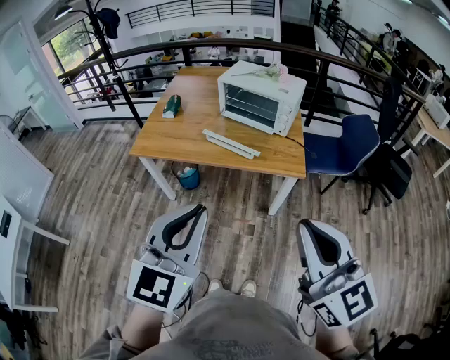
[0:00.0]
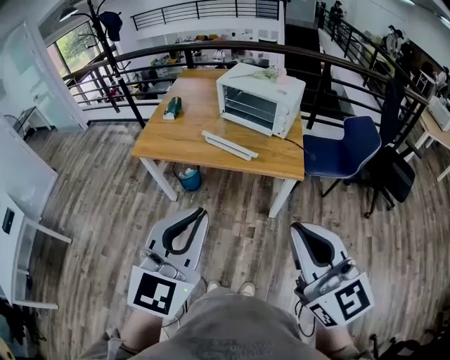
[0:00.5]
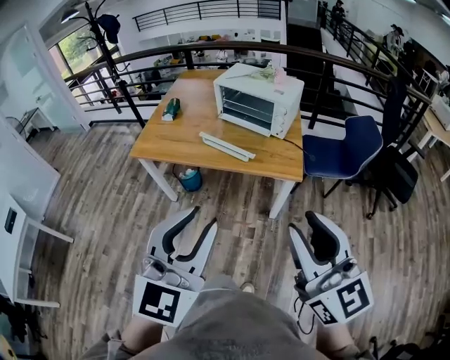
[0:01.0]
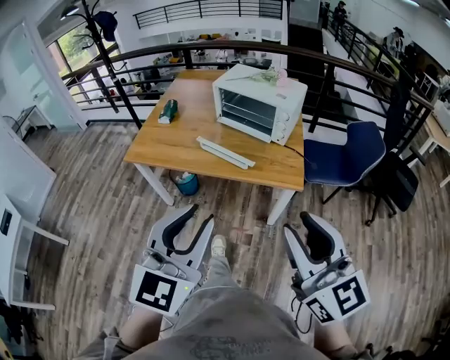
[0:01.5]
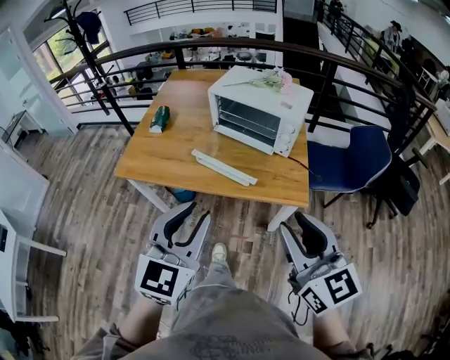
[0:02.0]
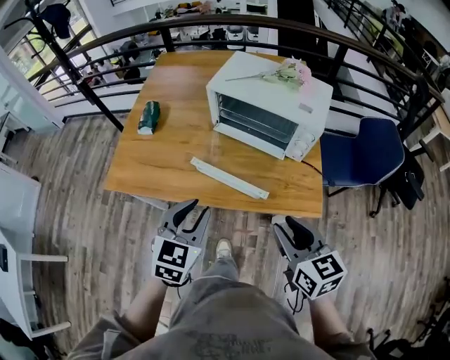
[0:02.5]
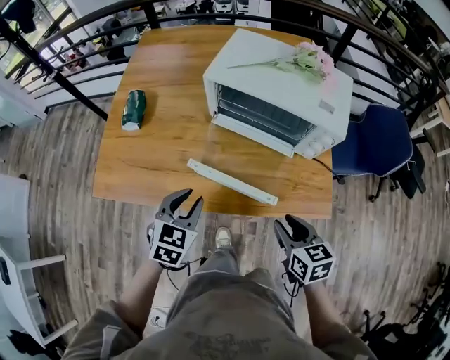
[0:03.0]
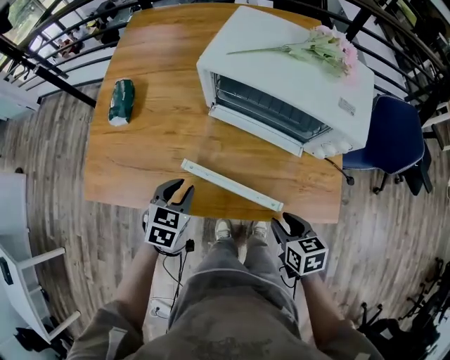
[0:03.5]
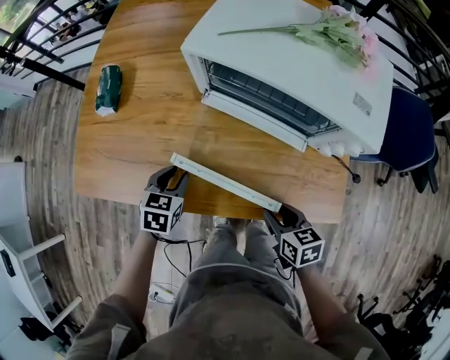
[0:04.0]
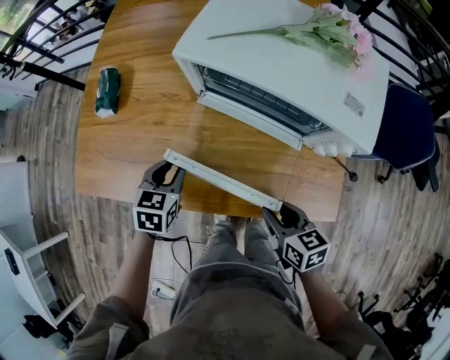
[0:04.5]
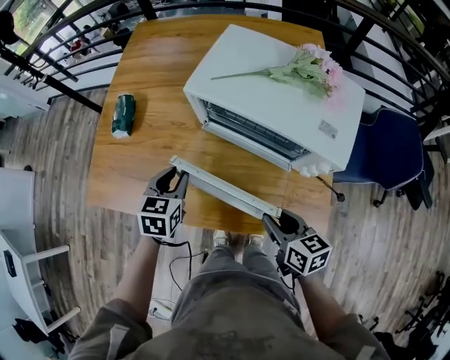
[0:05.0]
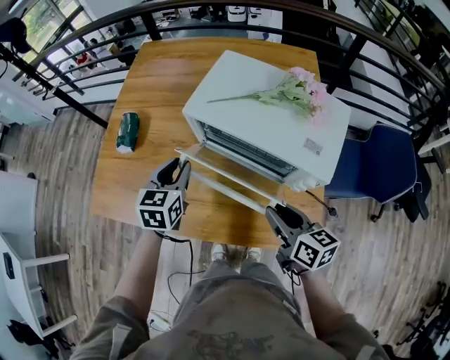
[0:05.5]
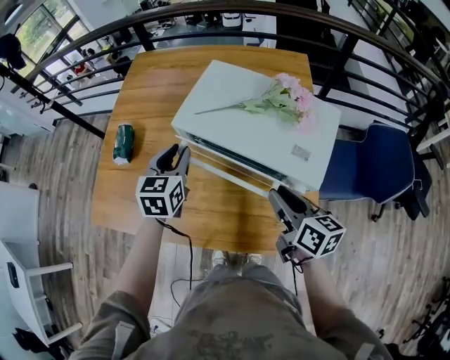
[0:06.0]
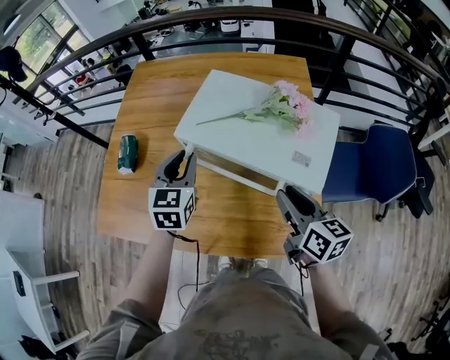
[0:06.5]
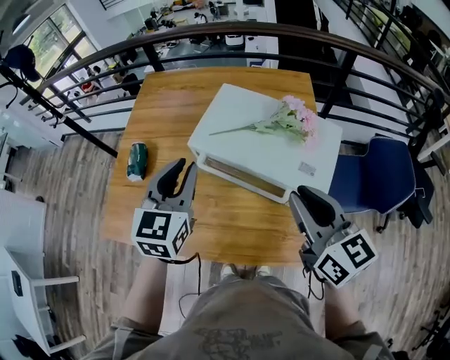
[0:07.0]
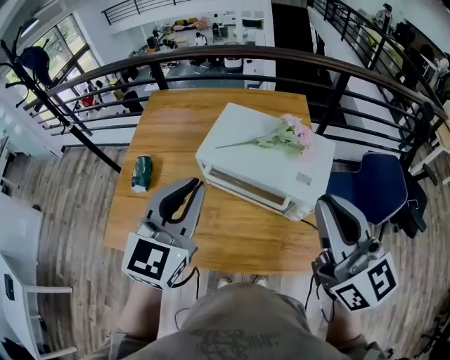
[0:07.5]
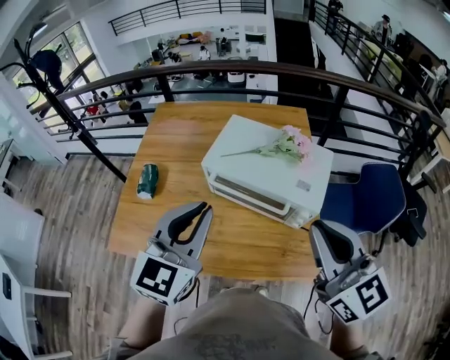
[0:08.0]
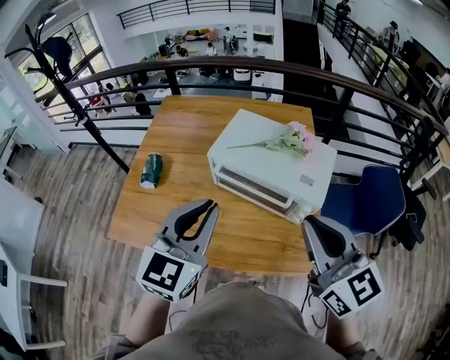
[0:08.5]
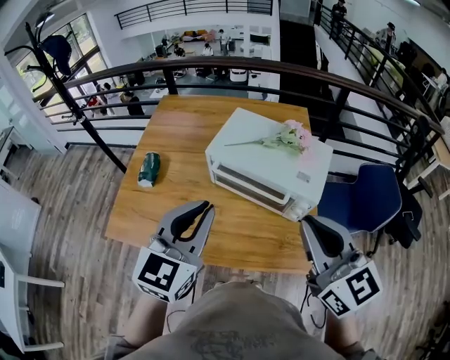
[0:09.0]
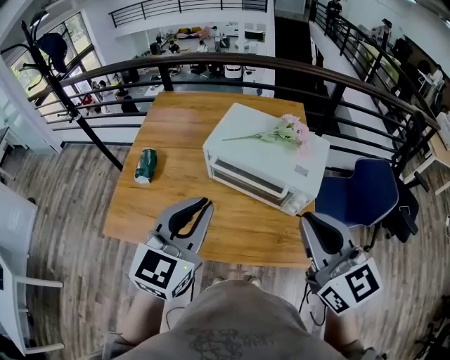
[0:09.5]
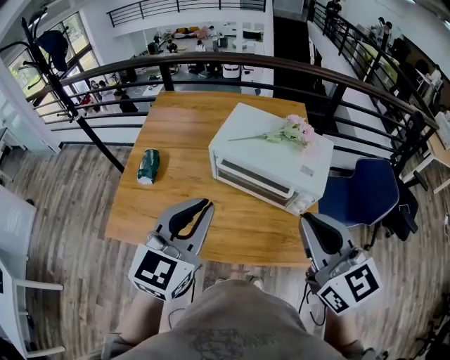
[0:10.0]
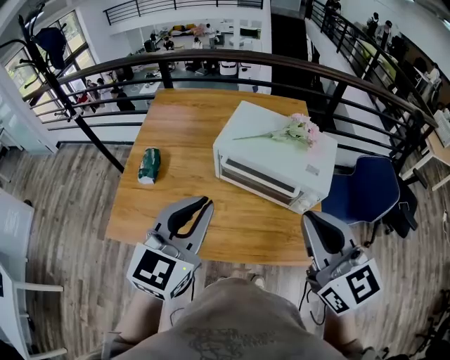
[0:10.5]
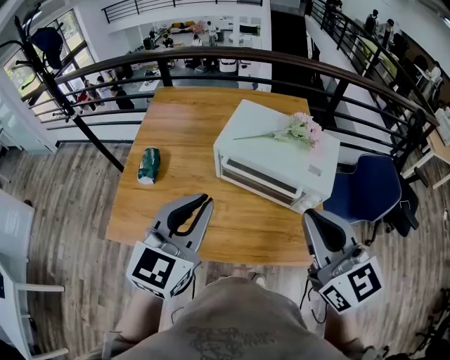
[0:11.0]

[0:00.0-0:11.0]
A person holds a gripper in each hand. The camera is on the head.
0:00.0 to 0:02.0: Both grippers move forward and downward, some 20 cm. The right gripper opens; the left gripper opens.
0:02.0 to 0:03.5: The two grippers go approximately 40 cm downward and forward. The right gripper points its fingers about 50 degrees further downward. Meanwhile the left gripper points its fingers about 40 degrees further downward.
0:03.5 to 0:05.5: The right gripper travels upward and forward by some 20 cm, and swivels some 30 degrees. Meanwhile the left gripper travels upward, forward and to the right by roughly 20 cm, and changes its angle by about 30 degrees.
0:05.5 to 0:07.5: The two grippers go roughly 30 cm upward. The left gripper swivels roughly 30 degrees; the right gripper swivels about 40 degrees, and closes its fingers.
0:07.5 to 0:09.0: Both grippers move backward, roughly 5 cm.
0:09.0 to 0:11.0: Both grippers move to the left, roughly 5 cm.

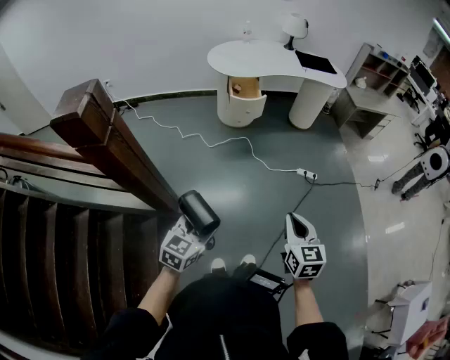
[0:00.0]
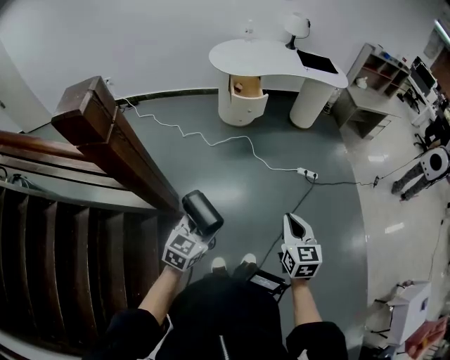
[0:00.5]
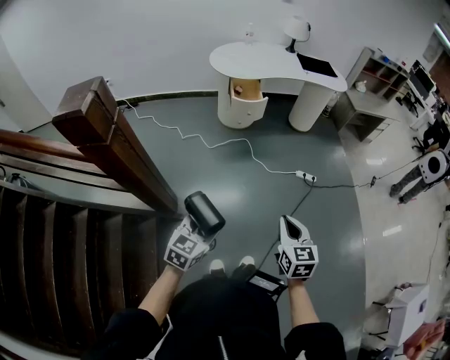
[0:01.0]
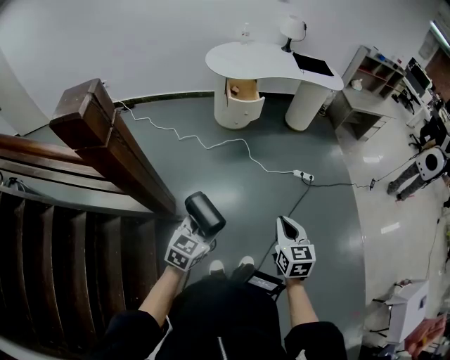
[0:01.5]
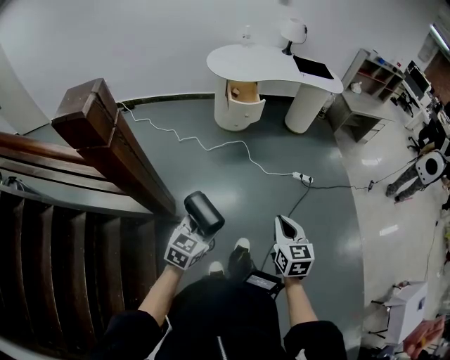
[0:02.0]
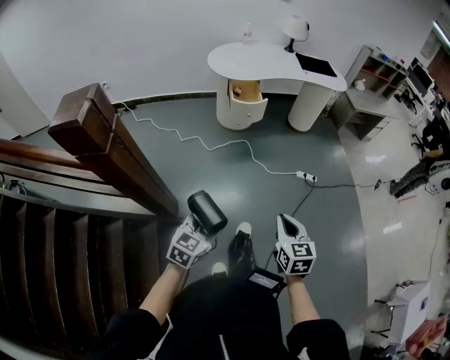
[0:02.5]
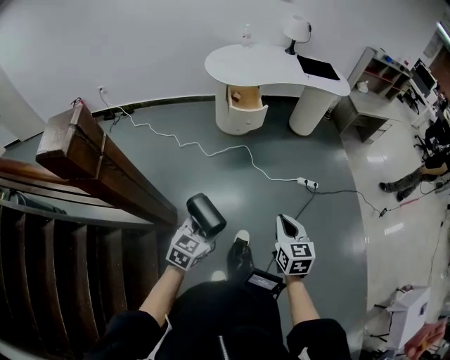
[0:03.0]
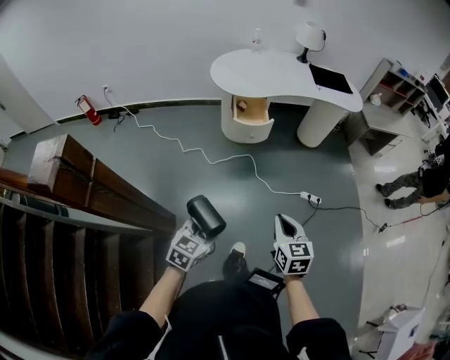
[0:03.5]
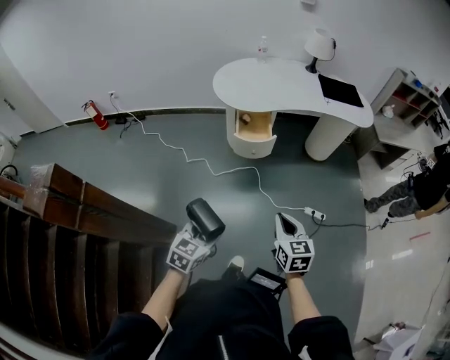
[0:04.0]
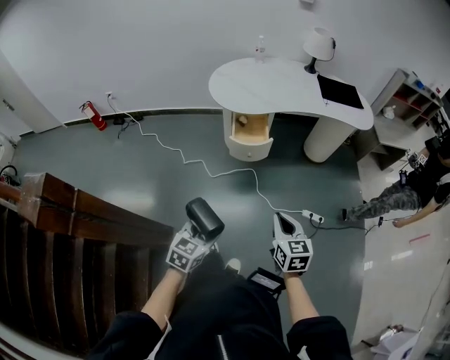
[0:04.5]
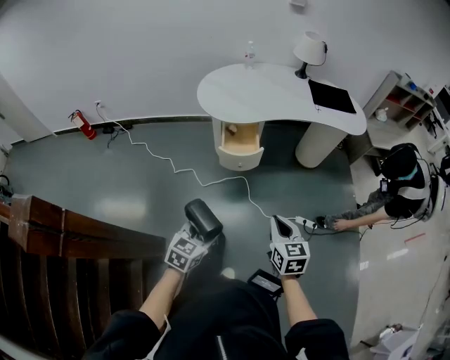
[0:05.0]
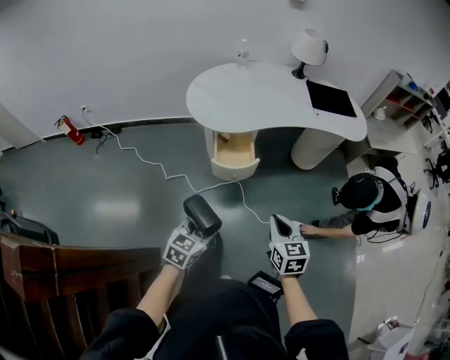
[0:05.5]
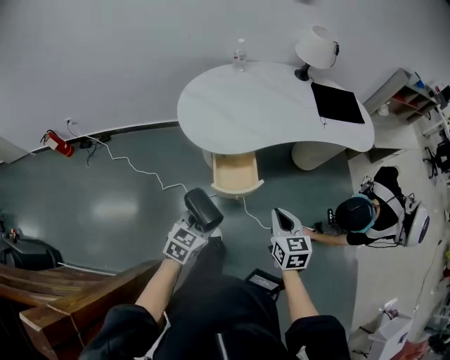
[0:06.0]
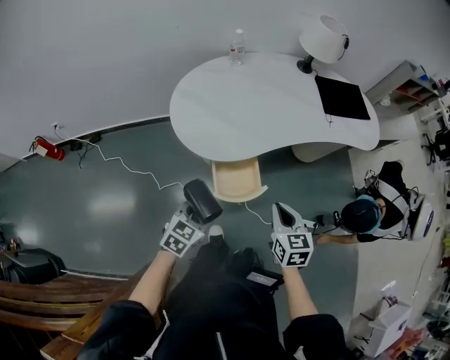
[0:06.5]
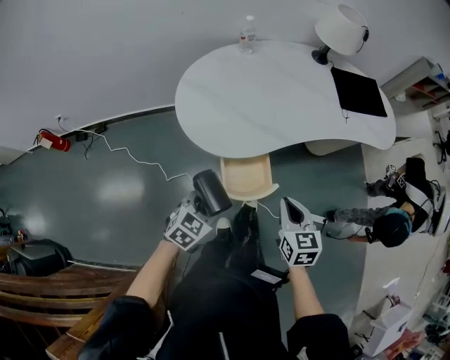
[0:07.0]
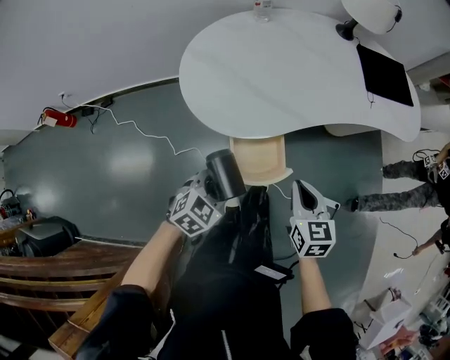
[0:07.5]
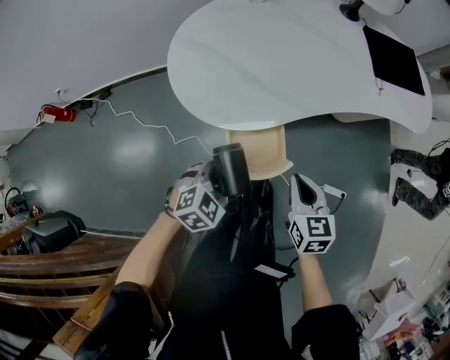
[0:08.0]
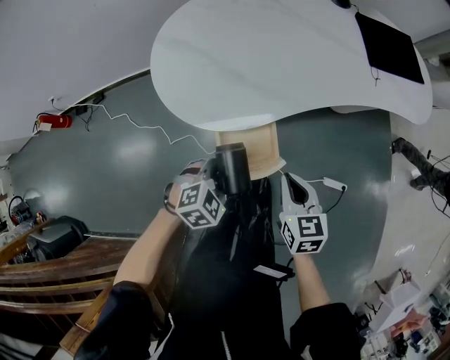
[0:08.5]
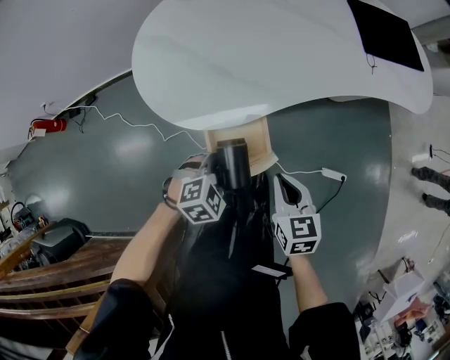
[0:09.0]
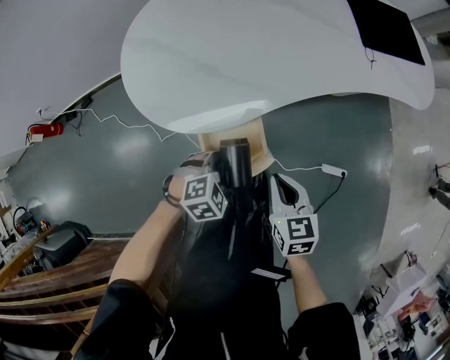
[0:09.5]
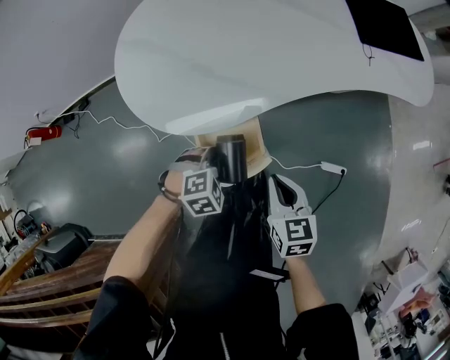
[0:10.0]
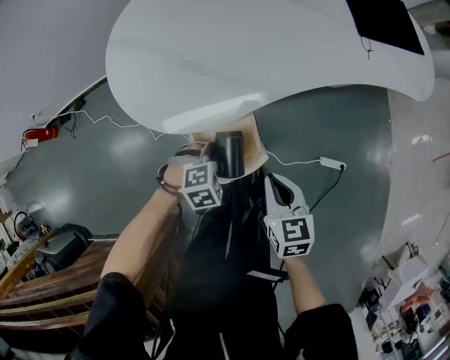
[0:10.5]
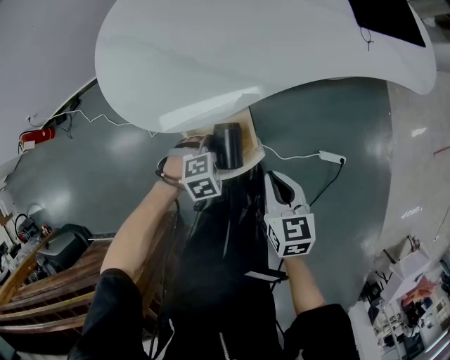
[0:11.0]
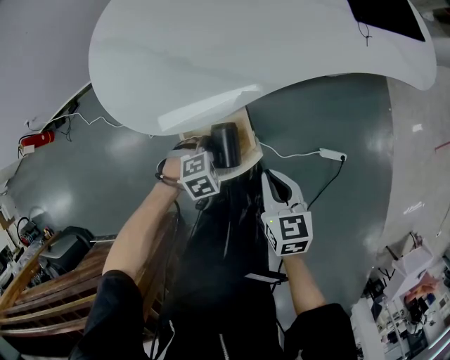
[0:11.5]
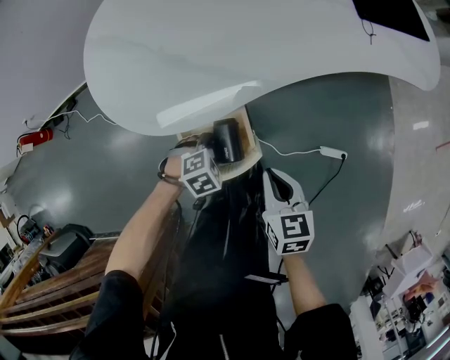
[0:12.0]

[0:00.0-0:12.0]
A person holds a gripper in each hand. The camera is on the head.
0:00.0 to 0:02.0: The right gripper ends up roughly 5 cm from where it was.
0:02.0 to 0:04.0: Both grippers travel together forward, roughly 30 cm.
0:04.0 to 0:06.0: Both grippers move forward, roughly 35 cm.
0:06.0 to 0:08.0: The left gripper is displaced forward and downward by roughly 20 cm, and changes its angle by roughly 30 degrees. Meanwhile the right gripper goes roughly 15 cm forward, downward and to the left.
0:08.0 to 0:10.0: The right gripper moves downward, some 5 cm, while the left gripper is displaced downward and forward by roughly 10 cm, and turns by some 20 degrees.
0:10.0 to 0:12.0: The right gripper moves about 5 cm, while the left gripper goes roughly 10 cm downward.

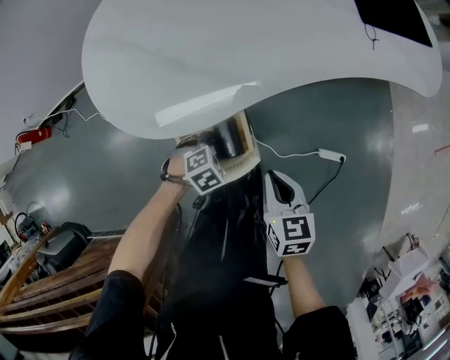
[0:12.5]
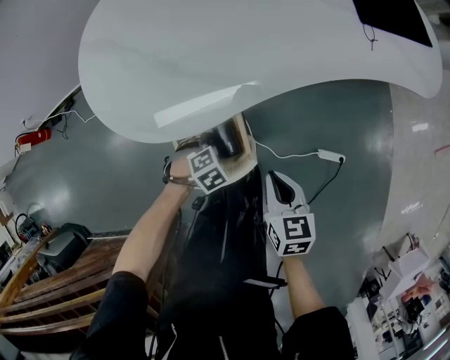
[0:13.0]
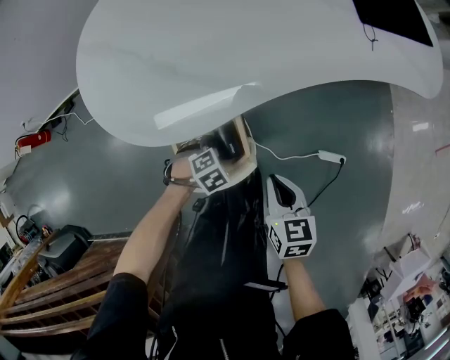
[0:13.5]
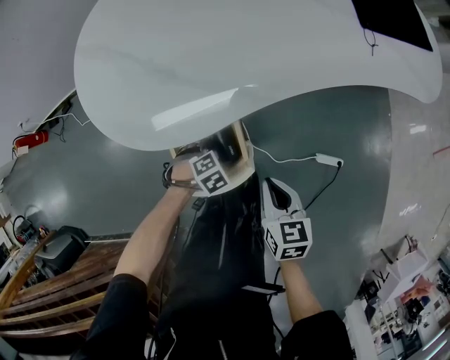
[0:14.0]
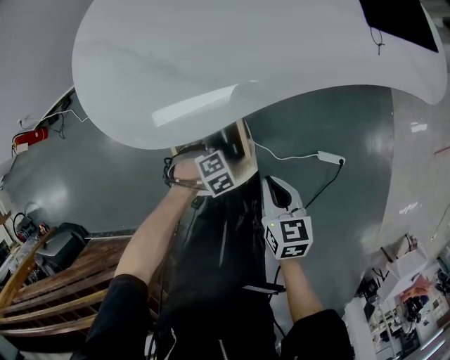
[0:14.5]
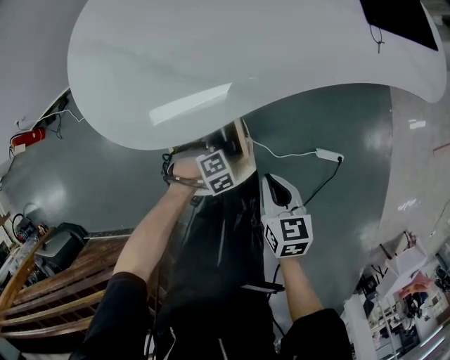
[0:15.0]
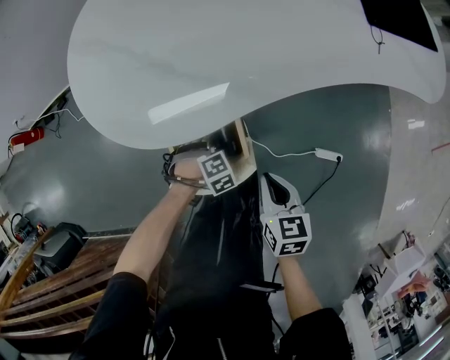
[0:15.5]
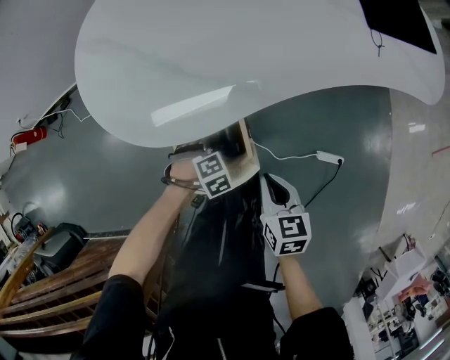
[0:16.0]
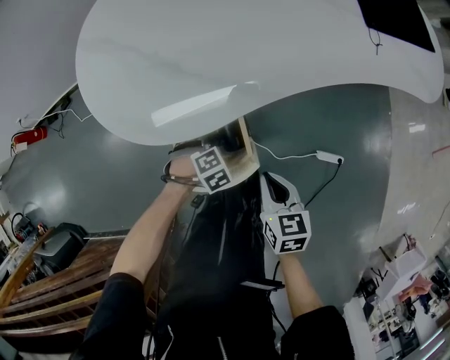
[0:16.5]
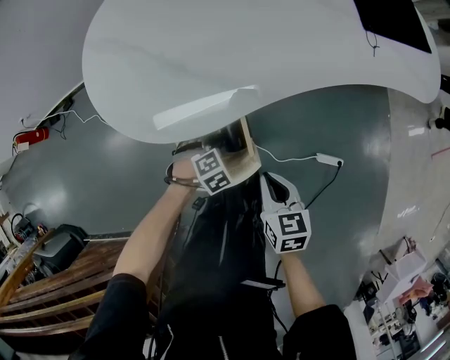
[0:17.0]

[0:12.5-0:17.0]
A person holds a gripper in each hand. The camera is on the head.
0:12.5 to 0:14.5: The left gripper moves downward, roughly 5 cm.
0:14.5 to 0:17.0: The grippers move only a little.
